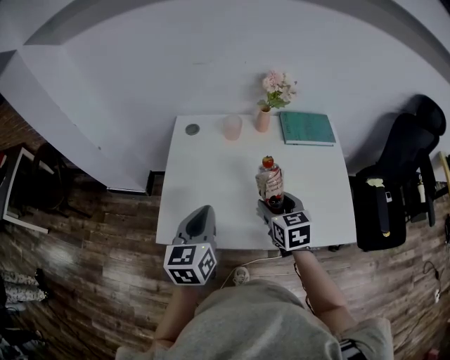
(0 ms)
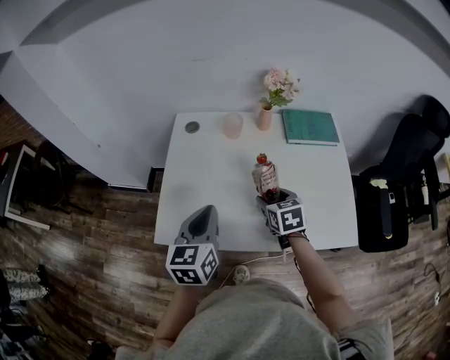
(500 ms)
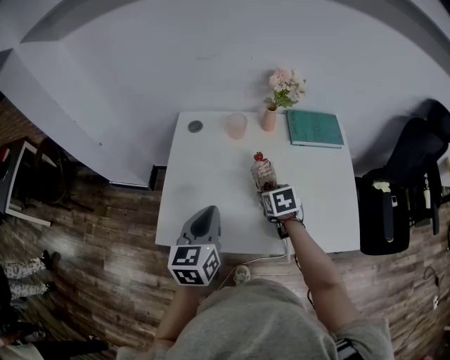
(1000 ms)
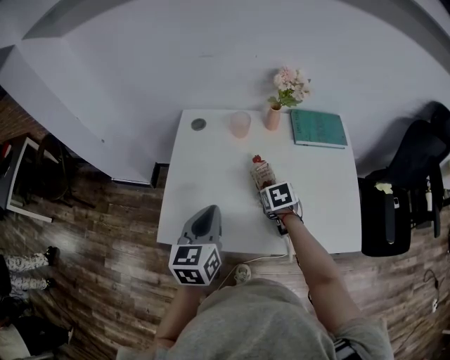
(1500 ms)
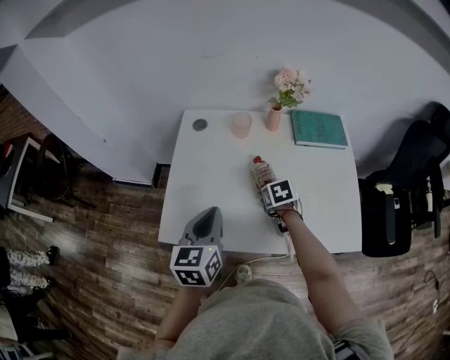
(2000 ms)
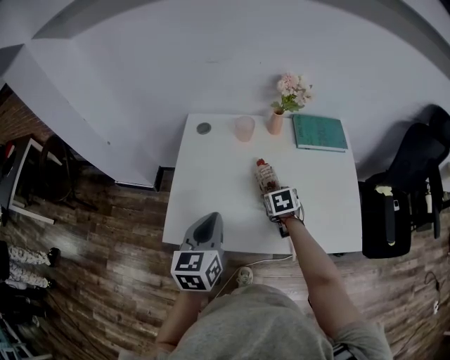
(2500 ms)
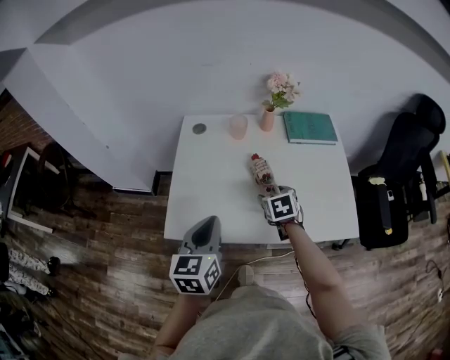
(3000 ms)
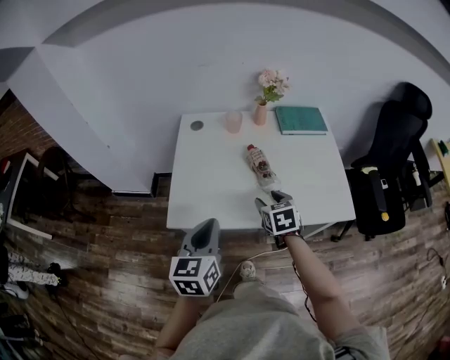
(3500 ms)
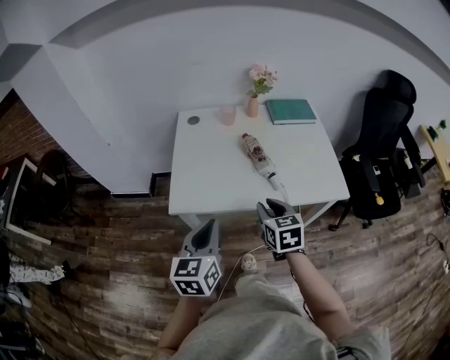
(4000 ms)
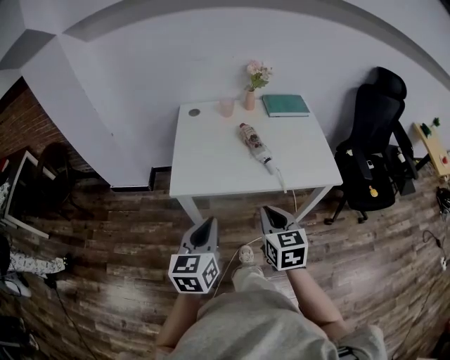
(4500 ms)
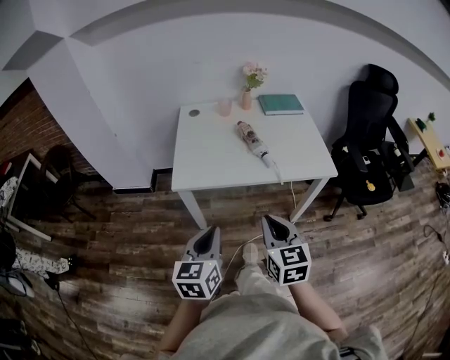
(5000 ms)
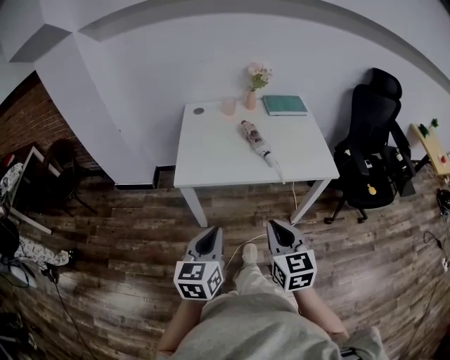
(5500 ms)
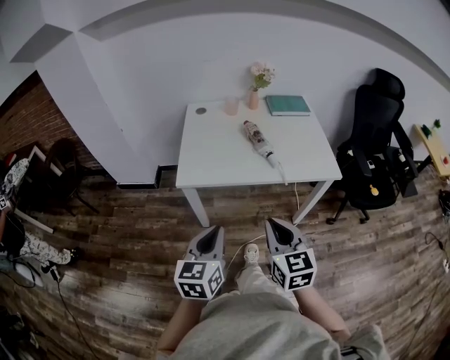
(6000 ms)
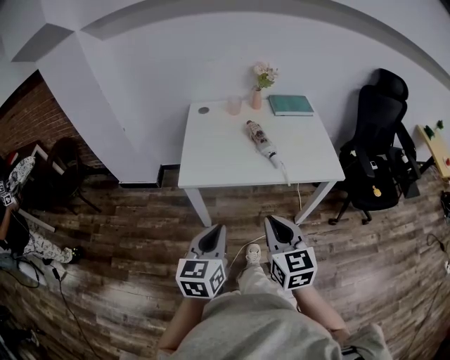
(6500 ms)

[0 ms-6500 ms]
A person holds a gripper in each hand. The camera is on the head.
0 ms to 2000 ms: The right gripper goes approximately 15 cm downward and forward, and swivels approximately 30 degrees.
2000 ms to 4500 ms: The right gripper moves backward and upward, approximately 40 cm, tilts its fingers about 40 degrees upward, and closes; the left gripper is displaced backward by approximately 30 cm.
4500 ms to 6500 ms: Both grippers move backward, roughly 10 cm.

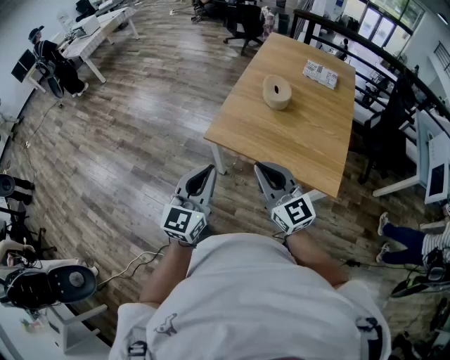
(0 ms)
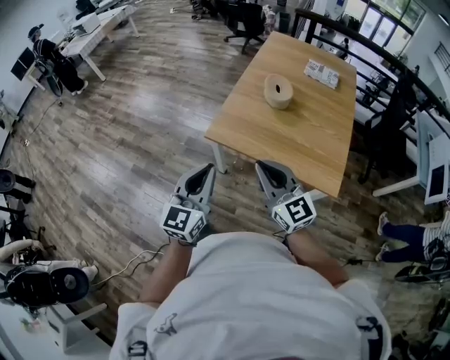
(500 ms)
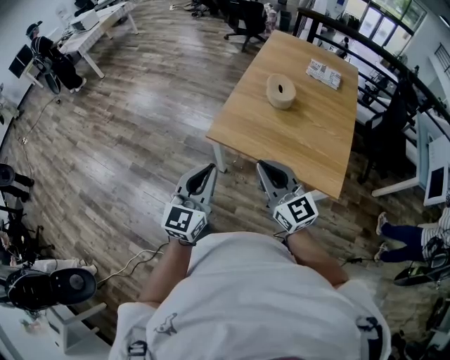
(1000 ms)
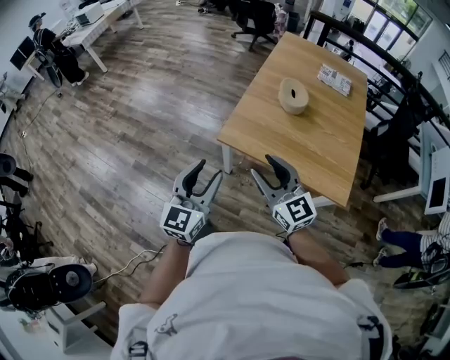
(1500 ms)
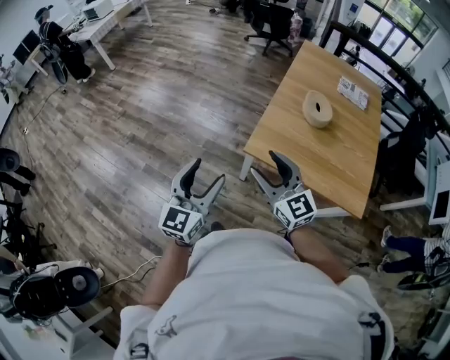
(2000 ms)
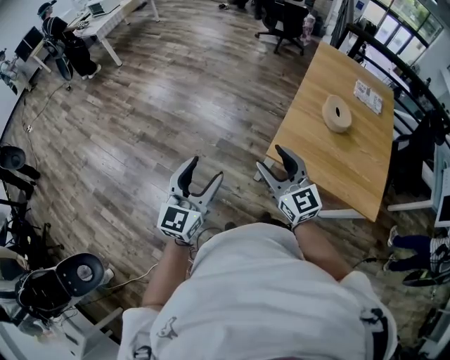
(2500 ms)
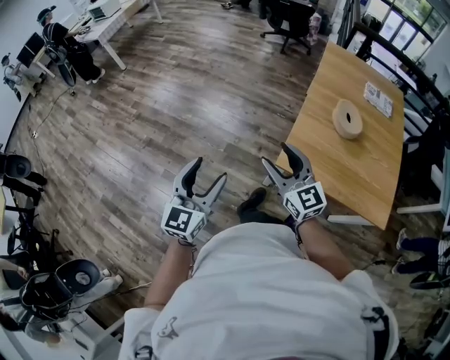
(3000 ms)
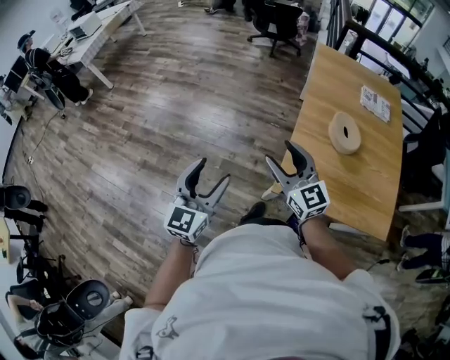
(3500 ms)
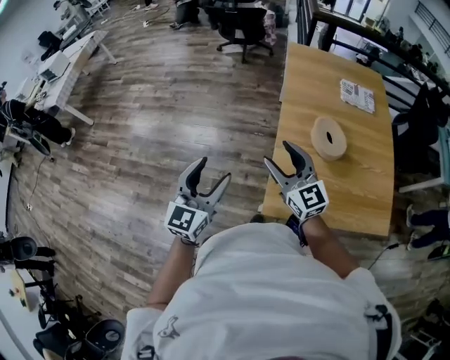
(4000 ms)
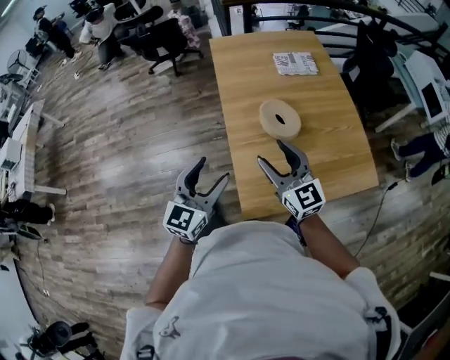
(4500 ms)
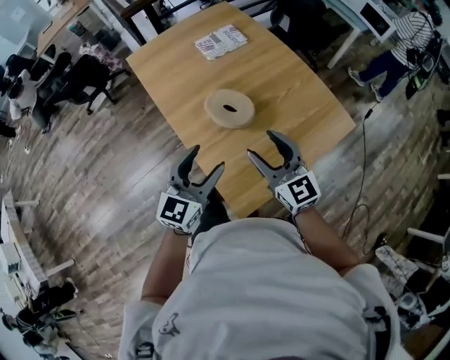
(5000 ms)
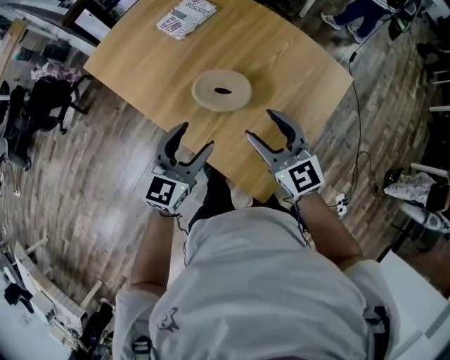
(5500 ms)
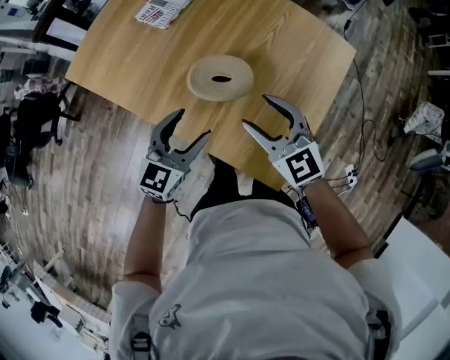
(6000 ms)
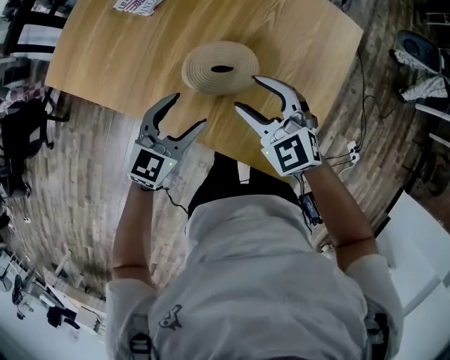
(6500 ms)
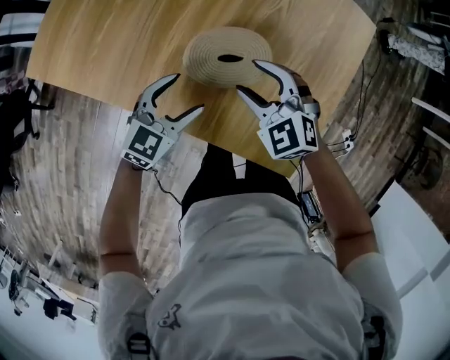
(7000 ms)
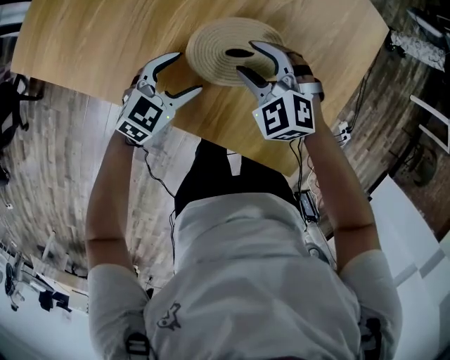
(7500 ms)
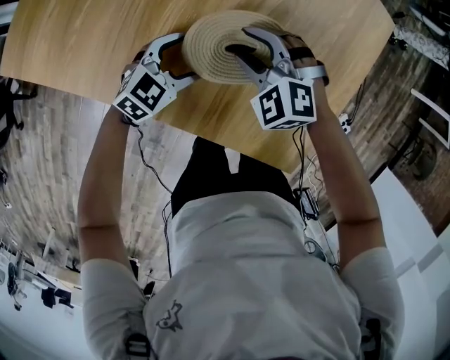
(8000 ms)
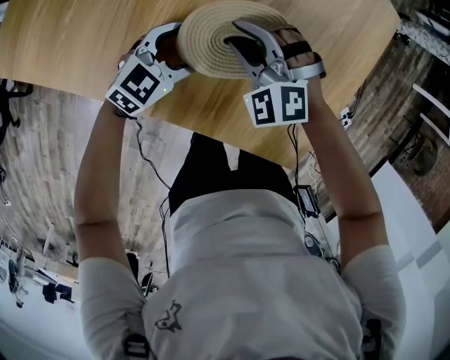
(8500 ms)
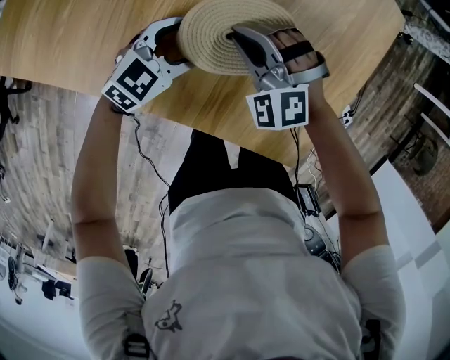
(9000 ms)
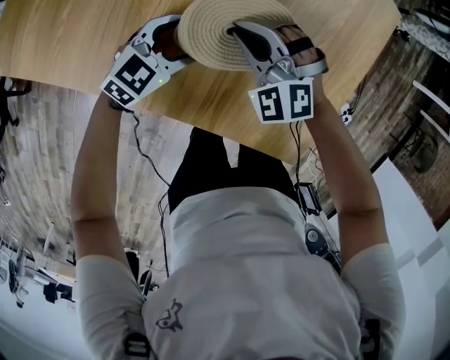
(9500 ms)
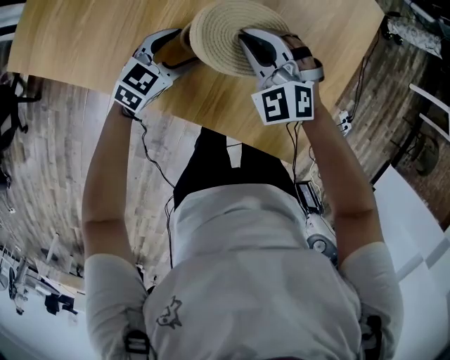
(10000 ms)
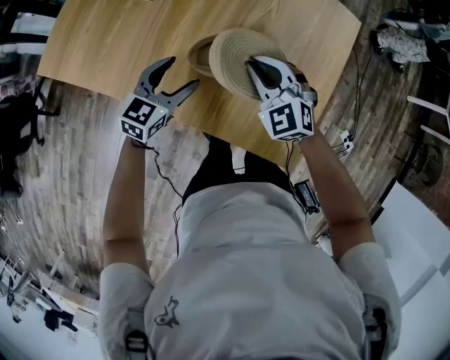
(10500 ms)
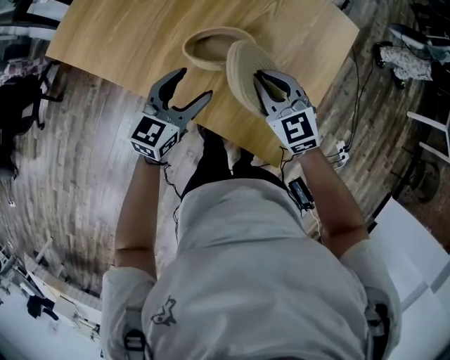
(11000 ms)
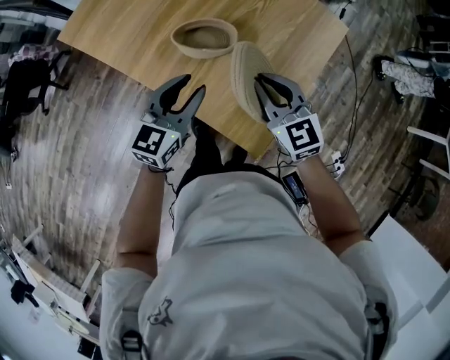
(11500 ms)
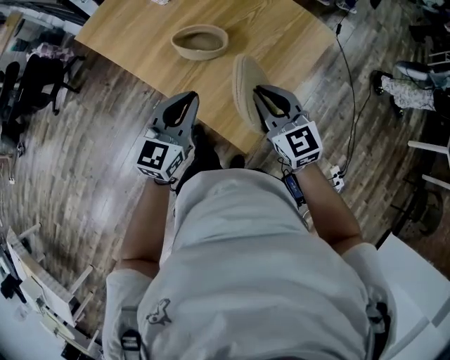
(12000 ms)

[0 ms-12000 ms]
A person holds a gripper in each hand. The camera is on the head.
0 ms to 2000 ms: Both grippers move to the left and forward, some 25 cm. The right gripper opens its fingers, while the left gripper opens its fingers.
2000 ms to 4000 ms: Both grippers travel together forward, some 35 cm.
4000 ms to 6000 ms: The right gripper ends up roughly 30 cm from where it was, and swivels roughly 60 degrees, while the left gripper shifts by about 40 cm, and rotates about 80 degrees.
6000 ms to 8000 ms: The grippers both shift downward and forward by roughly 25 cm. The left gripper changes its angle by roughly 30 degrees; the right gripper angles its fingers downward, by some 30 degrees.
8000 ms to 10000 ms: The right gripper is displaced upward by approximately 5 cm, and closes.
10000 ms to 12000 ms: The right gripper ends up roughly 35 cm from where it was, and changes its angle by about 40 degrees. The left gripper shifts by some 40 cm, swivels about 40 degrees, and closes.

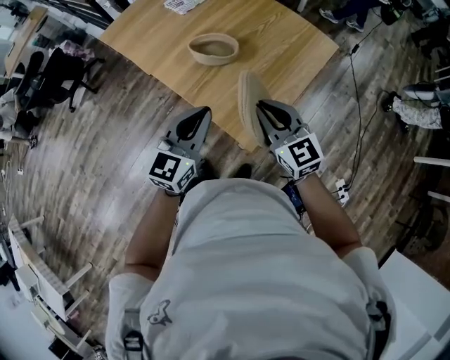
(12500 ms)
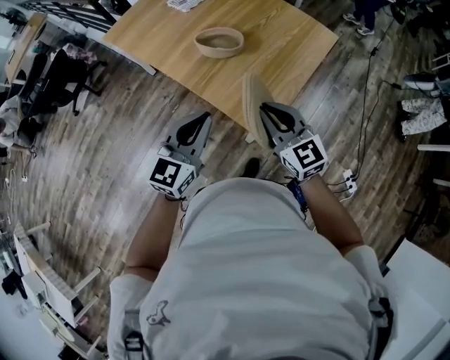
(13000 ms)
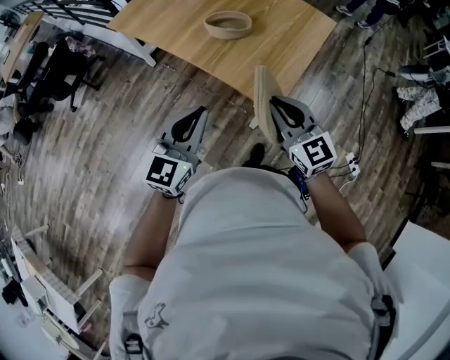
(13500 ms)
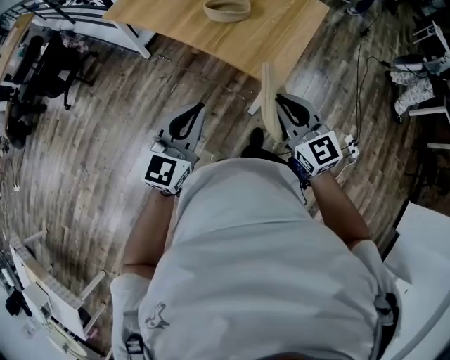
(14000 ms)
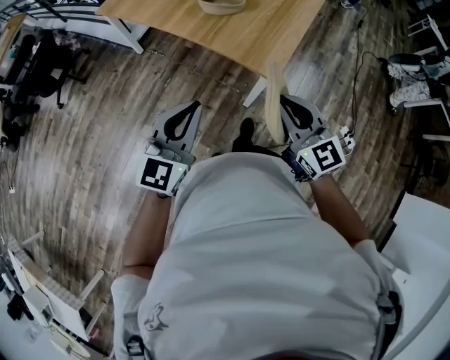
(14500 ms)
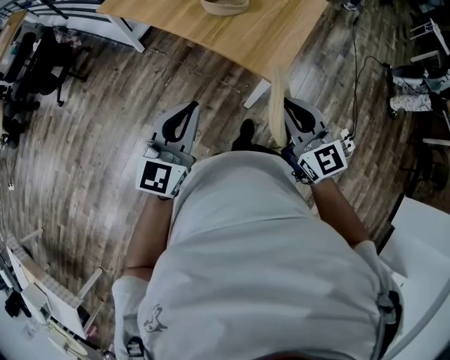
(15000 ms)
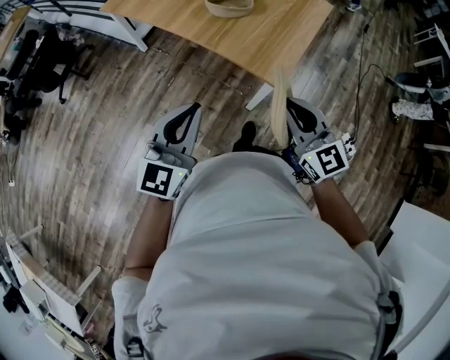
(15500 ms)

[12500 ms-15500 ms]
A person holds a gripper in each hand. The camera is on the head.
12500 ms to 14000 ms: The grippers both shift backward and to the left by approximately 25 cm.
14000 ms to 15500 ms: There are only small adjustments of the grippers.

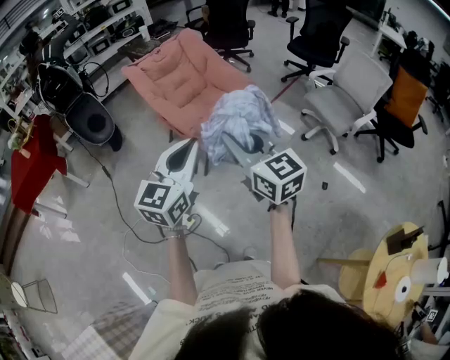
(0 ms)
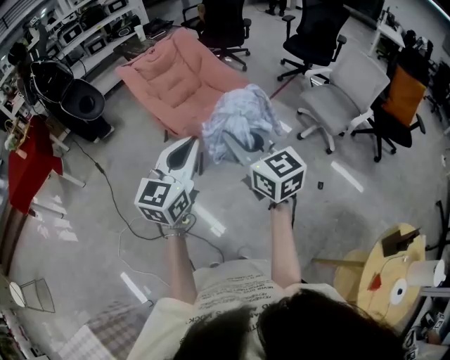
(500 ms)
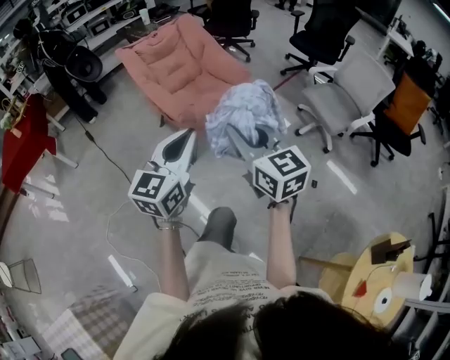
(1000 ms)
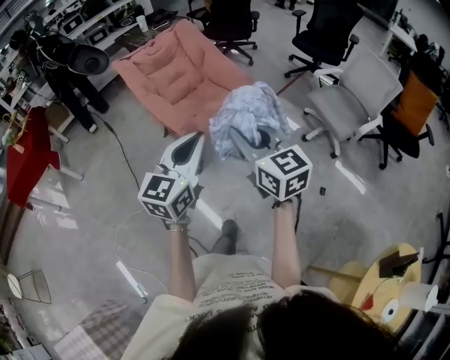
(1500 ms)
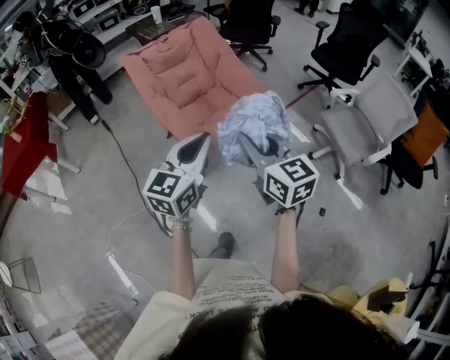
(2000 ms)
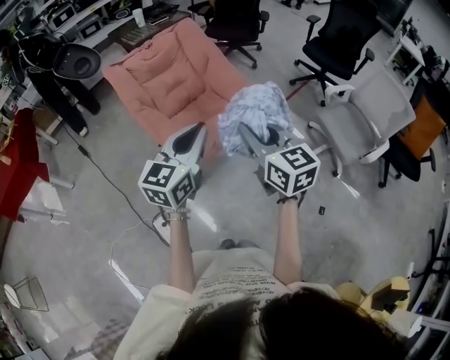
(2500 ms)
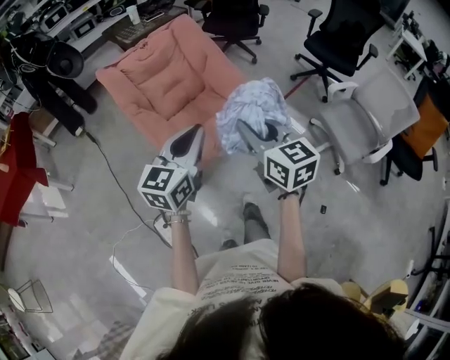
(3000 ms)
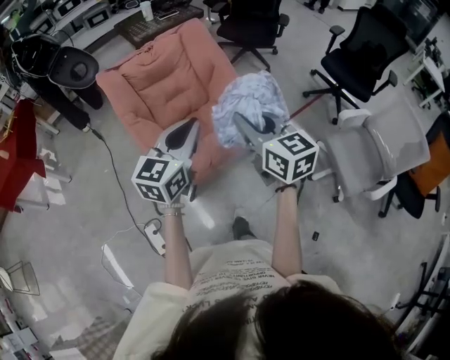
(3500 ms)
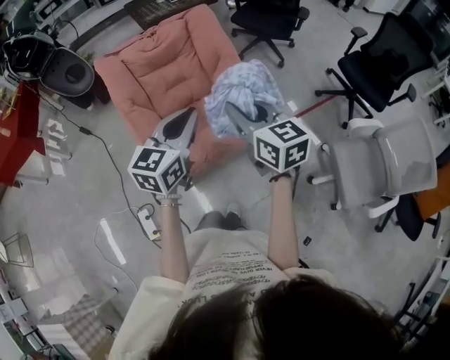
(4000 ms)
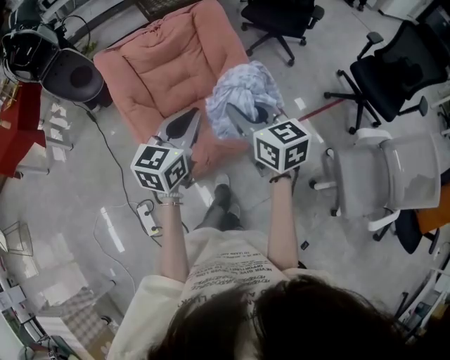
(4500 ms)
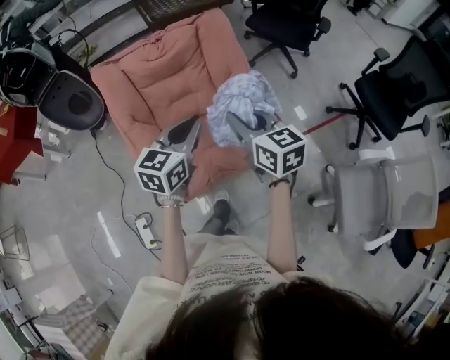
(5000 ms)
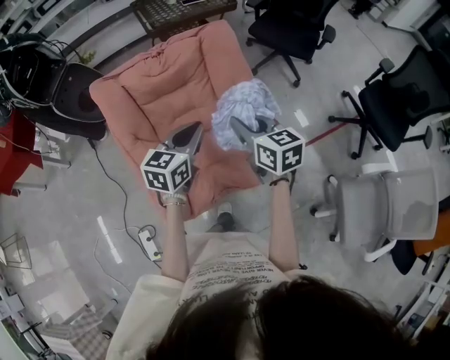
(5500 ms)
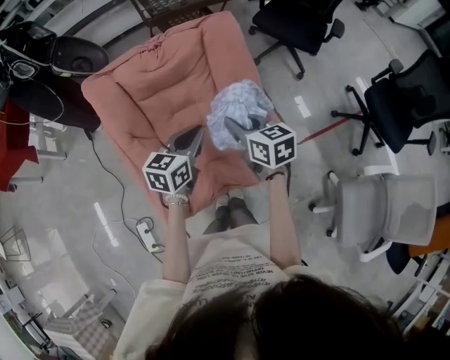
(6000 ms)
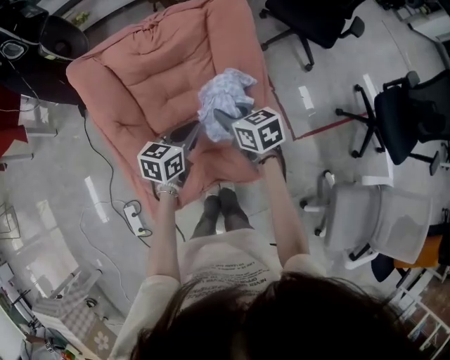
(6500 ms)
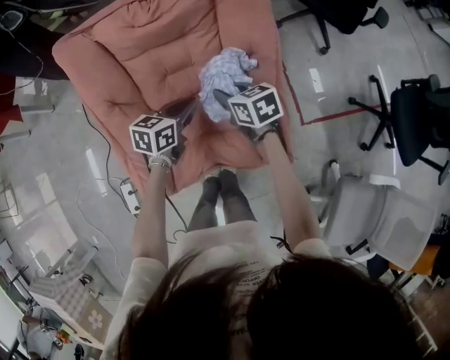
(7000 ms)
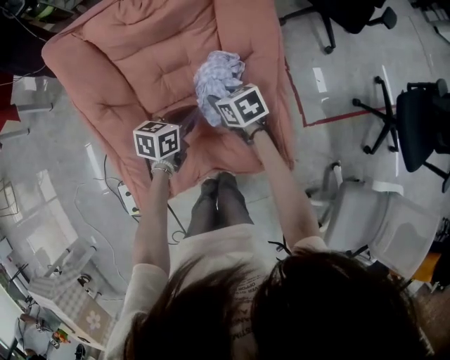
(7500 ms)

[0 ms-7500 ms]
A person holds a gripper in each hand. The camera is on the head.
0 ms to 2000 ms: Both grippers move forward, about 20 cm.
2000 ms to 4000 ms: The two grippers go some 35 cm forward.
4000 ms to 5500 ms: The grippers both shift forward by approximately 25 cm.
5500 ms to 7500 ms: The left gripper travels downward by some 25 cm, and rotates roughly 30 degrees, while the right gripper heads downward and forward, covering some 35 cm, and turns by about 40 degrees.
